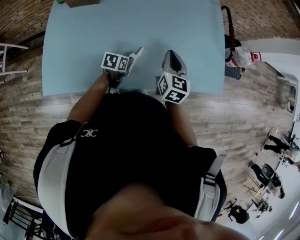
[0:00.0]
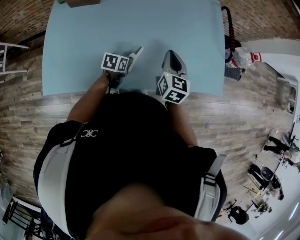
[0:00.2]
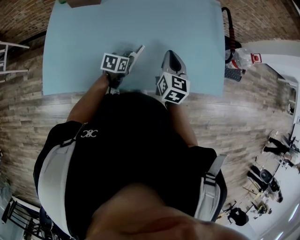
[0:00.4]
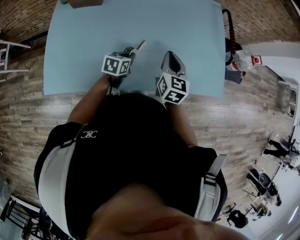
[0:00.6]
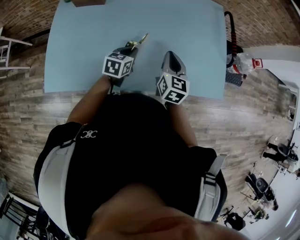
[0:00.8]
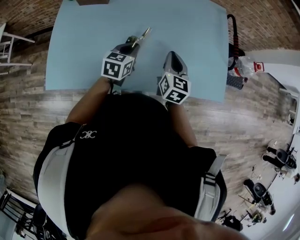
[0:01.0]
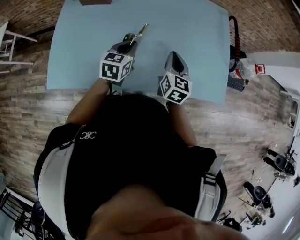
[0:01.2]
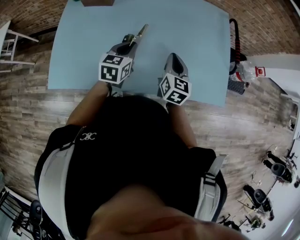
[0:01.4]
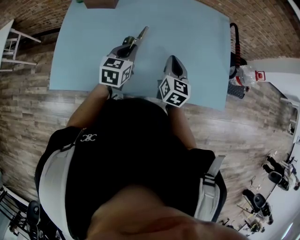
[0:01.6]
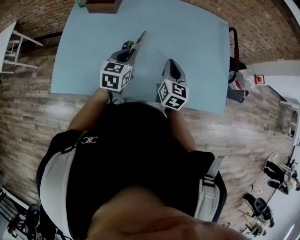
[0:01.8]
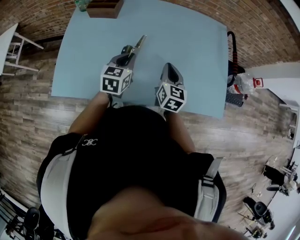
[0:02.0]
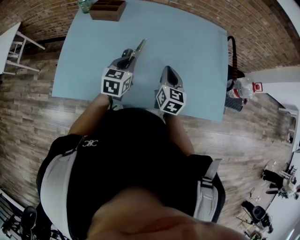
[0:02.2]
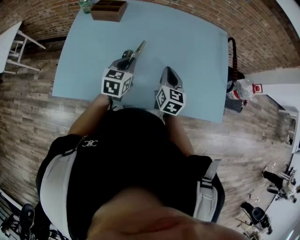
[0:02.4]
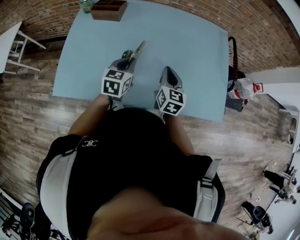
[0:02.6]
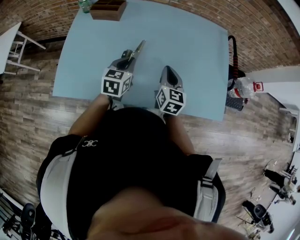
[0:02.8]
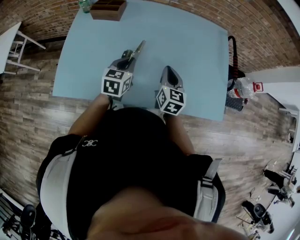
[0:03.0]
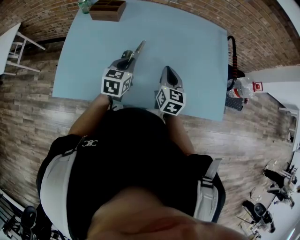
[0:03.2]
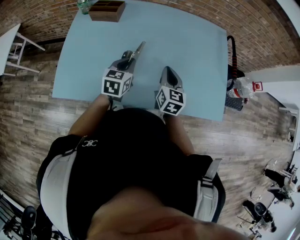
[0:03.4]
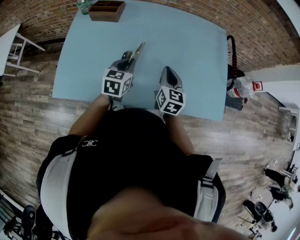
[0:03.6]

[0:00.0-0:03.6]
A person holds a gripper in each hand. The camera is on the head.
0:00.0 to 0:01.8: The left gripper goes about 20 cm upward, and swivels some 40 degrees.
0:01.8 to 0:03.6: The two grippers keep their place.

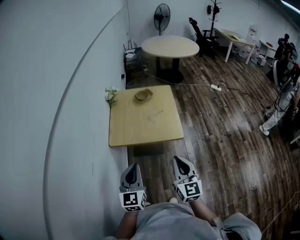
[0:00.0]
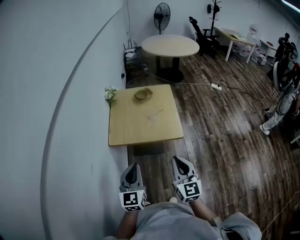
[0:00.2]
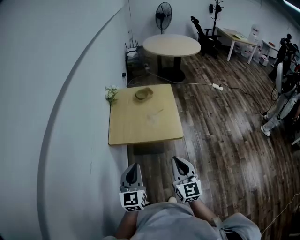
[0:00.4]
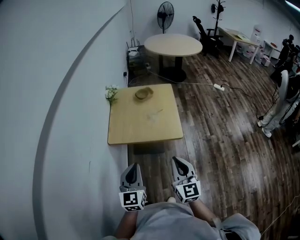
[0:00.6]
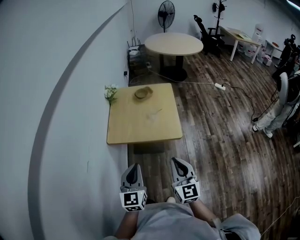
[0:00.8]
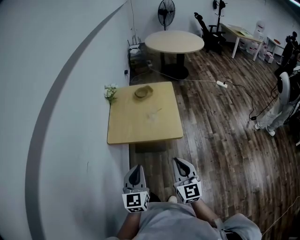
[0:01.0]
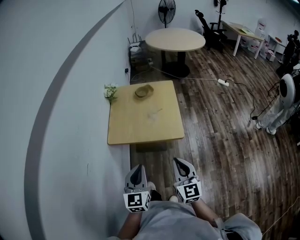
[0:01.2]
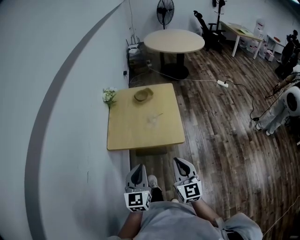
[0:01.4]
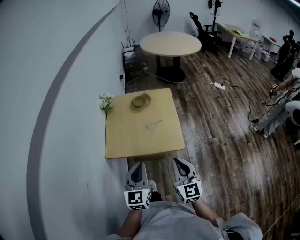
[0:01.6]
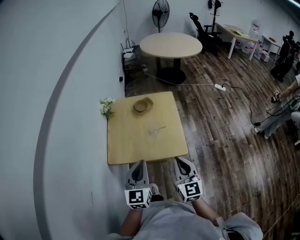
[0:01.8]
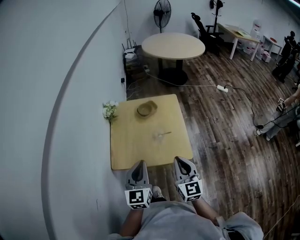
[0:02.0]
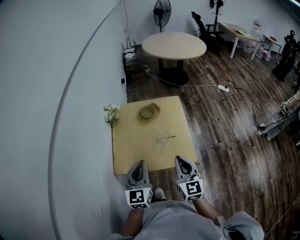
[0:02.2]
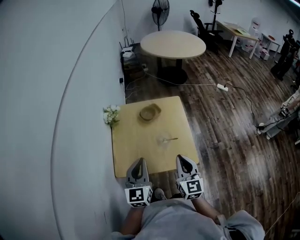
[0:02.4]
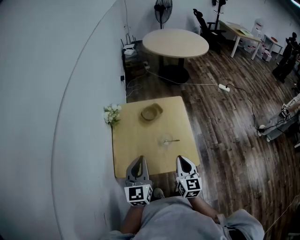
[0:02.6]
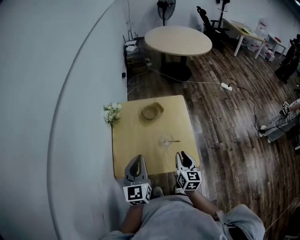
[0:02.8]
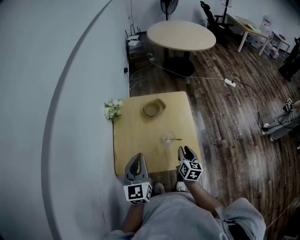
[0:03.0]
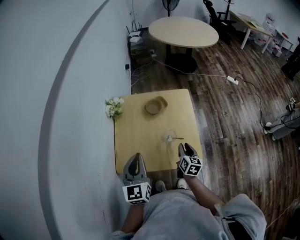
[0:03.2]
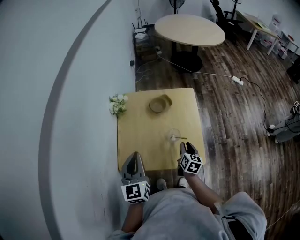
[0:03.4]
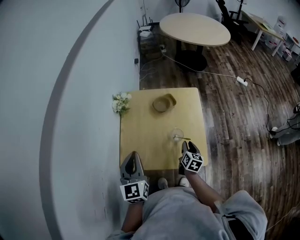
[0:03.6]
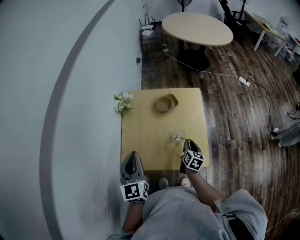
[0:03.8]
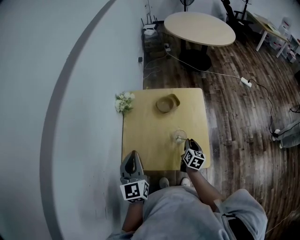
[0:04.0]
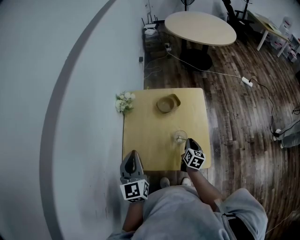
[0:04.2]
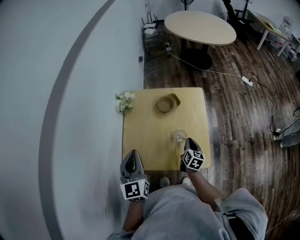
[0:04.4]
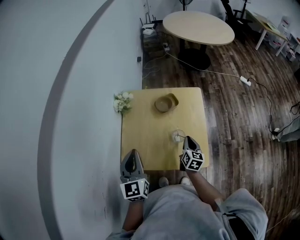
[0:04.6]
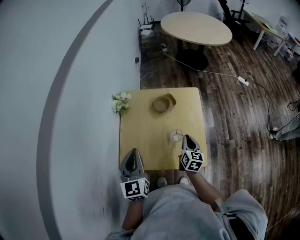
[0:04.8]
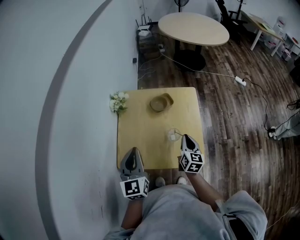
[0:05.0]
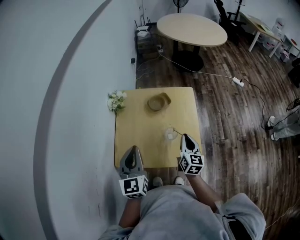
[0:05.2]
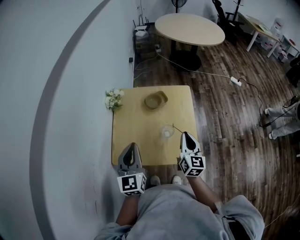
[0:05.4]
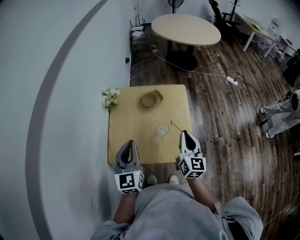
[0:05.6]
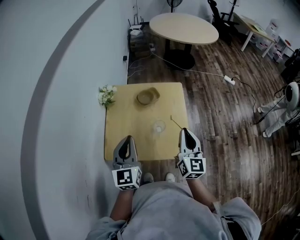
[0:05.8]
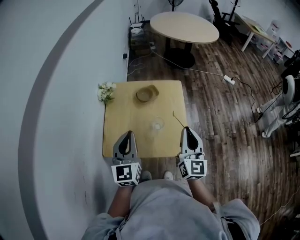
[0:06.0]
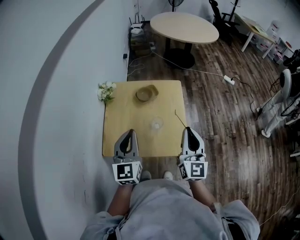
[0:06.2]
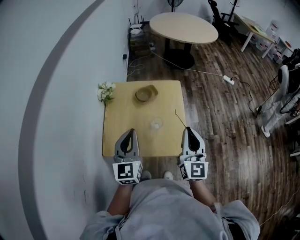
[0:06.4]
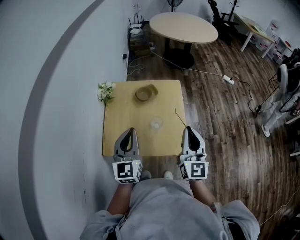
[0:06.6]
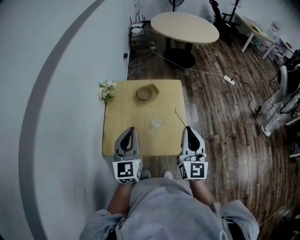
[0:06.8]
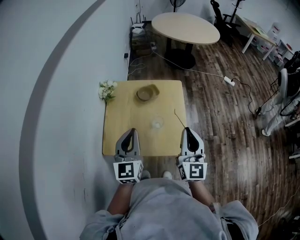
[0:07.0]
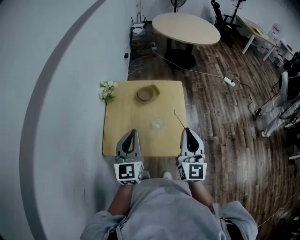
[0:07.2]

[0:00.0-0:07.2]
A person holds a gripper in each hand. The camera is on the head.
0:00.0 to 0:01.4: The left gripper shifts approximately 5 cm to the right. Meanwhile the right gripper moves forward, about 5 cm.
0:01.4 to 0:02.8: The left gripper shifts about 25 cm forward. Meanwhile the right gripper goes about 30 cm forward and downward, and turns by roughly 30 degrees.
0:02.8 to 0:04.4: The left gripper shifts approximately 5 cm to the left, while the right gripper goes some 15 cm downward and forward.
0:04.4 to 0:05.8: The left gripper shifts roughly 5 cm to the right. Meanwhile the right gripper goes approximately 25 cm upward, and swivels some 30 degrees.
0:05.8 to 0:07.2: The right gripper goes some 5 cm upward.
